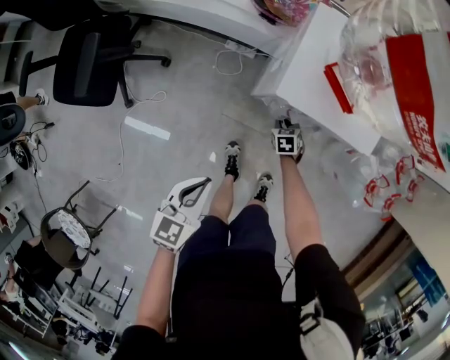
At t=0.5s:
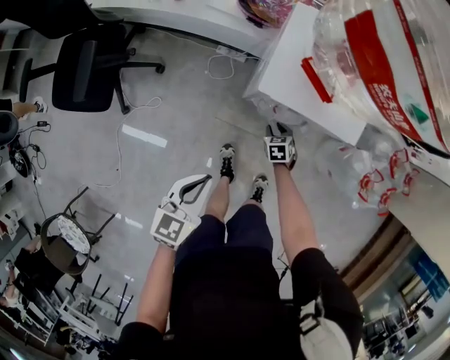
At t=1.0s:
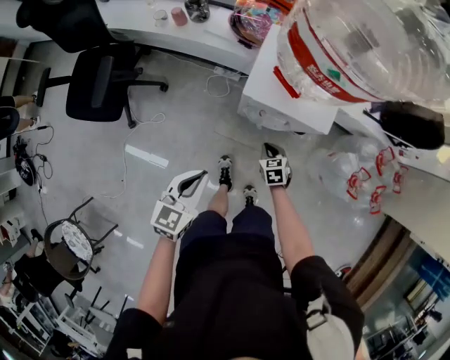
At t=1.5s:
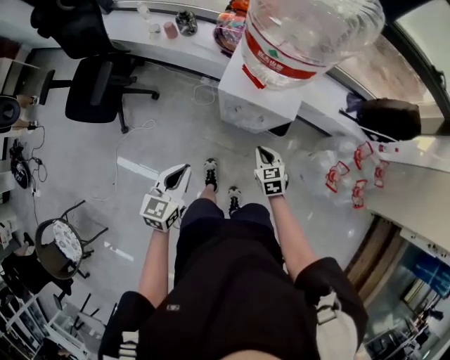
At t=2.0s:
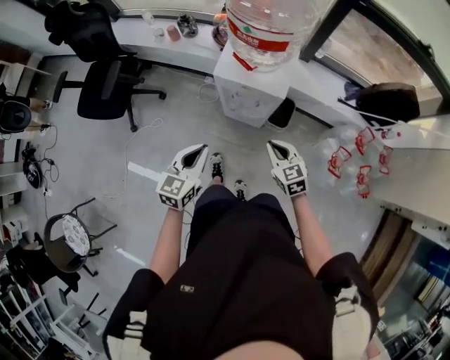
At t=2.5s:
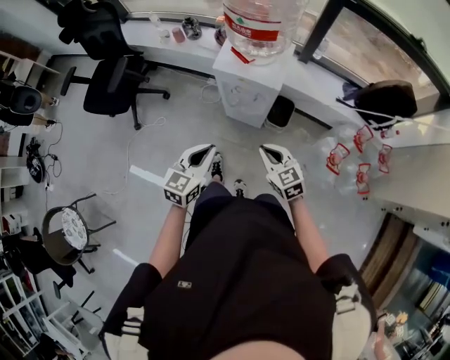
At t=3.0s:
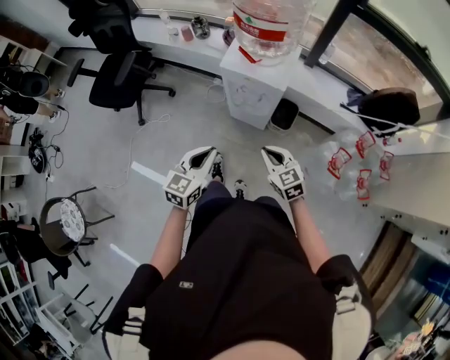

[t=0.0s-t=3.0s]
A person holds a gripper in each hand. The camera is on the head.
t=0.0s to t=1.5s: The left gripper is displaced upward by approximately 15 cm; the right gripper heads upward and backward, covering approximately 35 cm.
t=1.5s to t=3.0s: The left gripper shifts about 20 cm backward, to the right and upward. Meanwhile the right gripper goes roughly 20 cm backward and upward, and rotates approximately 20 degrees.

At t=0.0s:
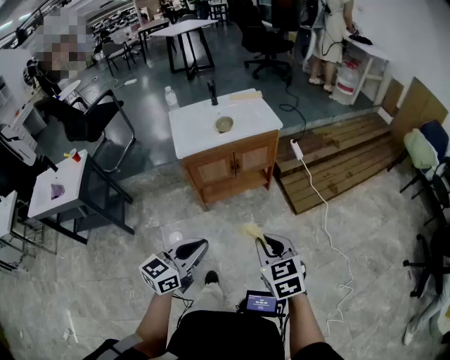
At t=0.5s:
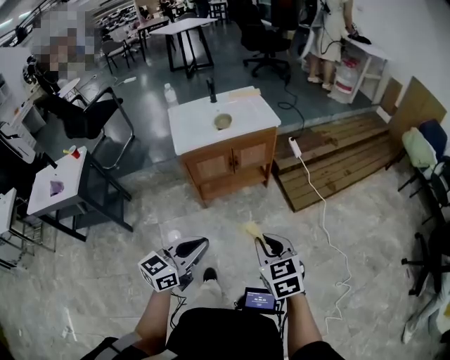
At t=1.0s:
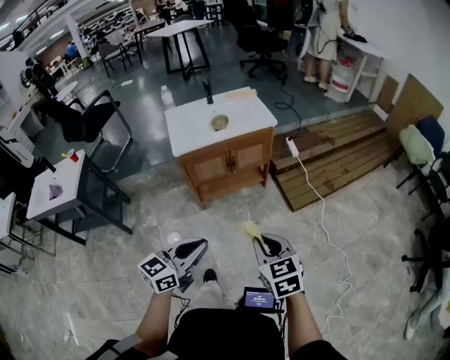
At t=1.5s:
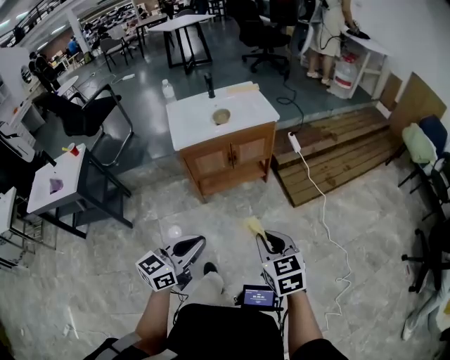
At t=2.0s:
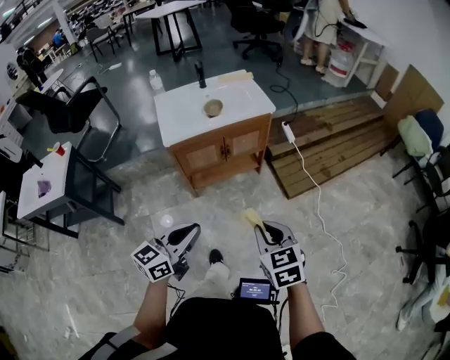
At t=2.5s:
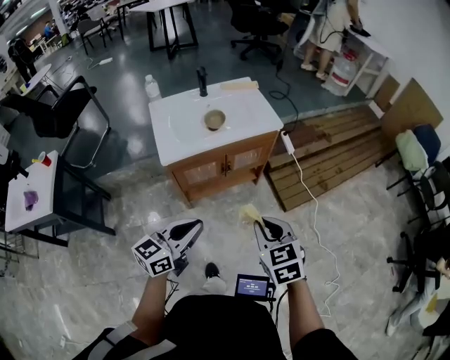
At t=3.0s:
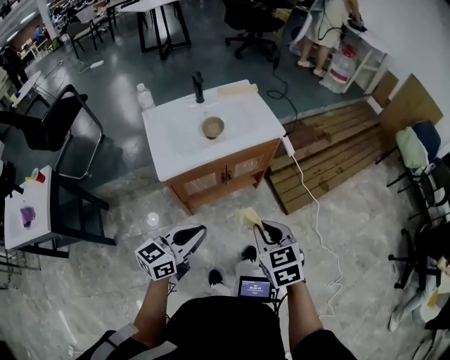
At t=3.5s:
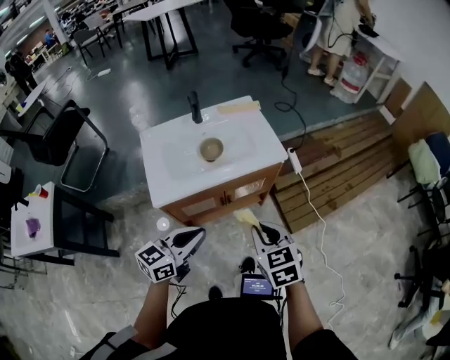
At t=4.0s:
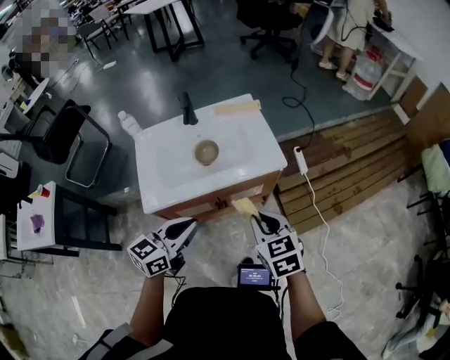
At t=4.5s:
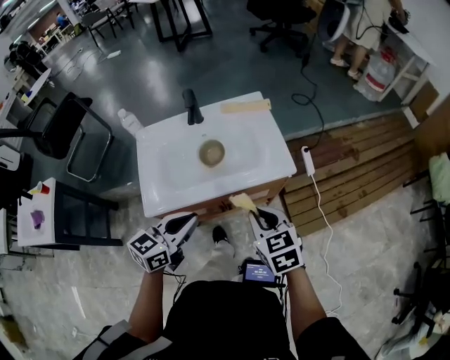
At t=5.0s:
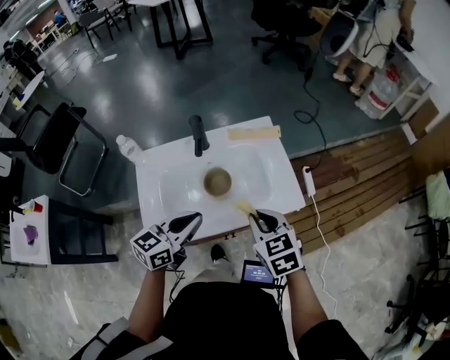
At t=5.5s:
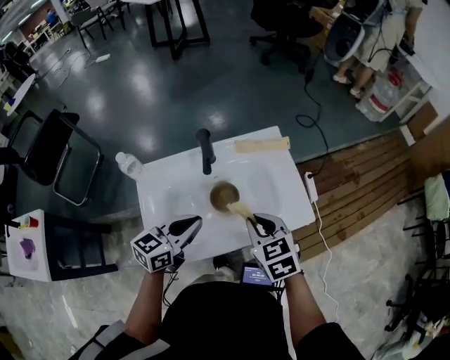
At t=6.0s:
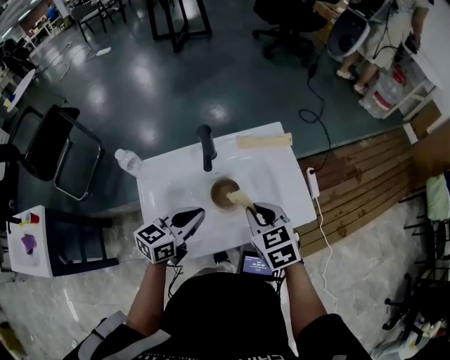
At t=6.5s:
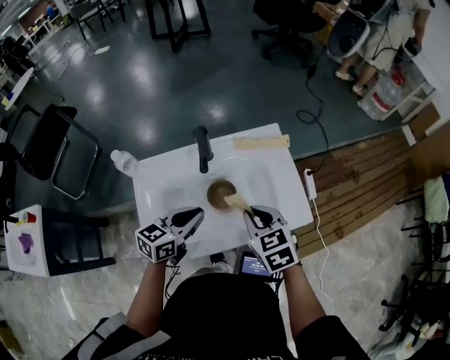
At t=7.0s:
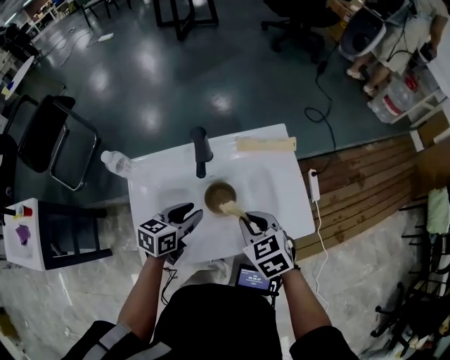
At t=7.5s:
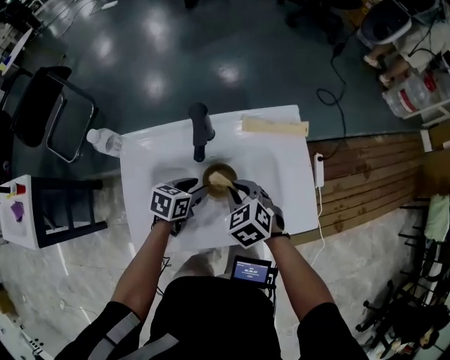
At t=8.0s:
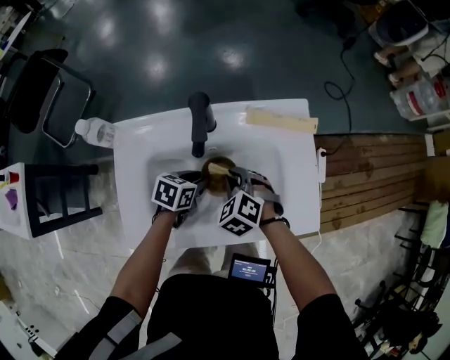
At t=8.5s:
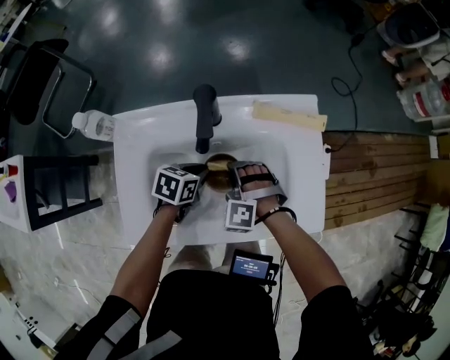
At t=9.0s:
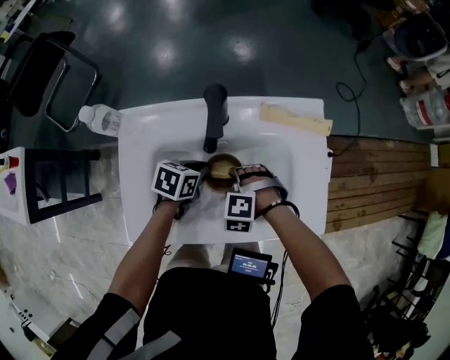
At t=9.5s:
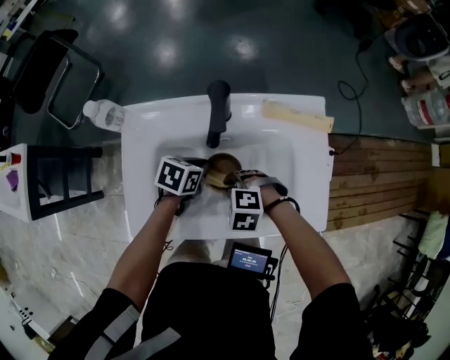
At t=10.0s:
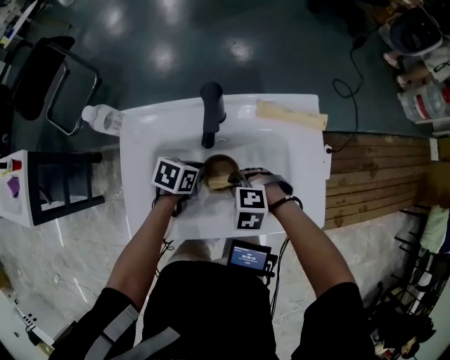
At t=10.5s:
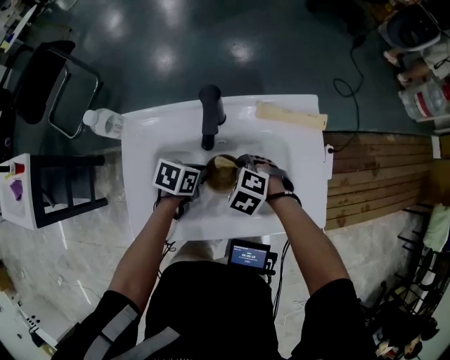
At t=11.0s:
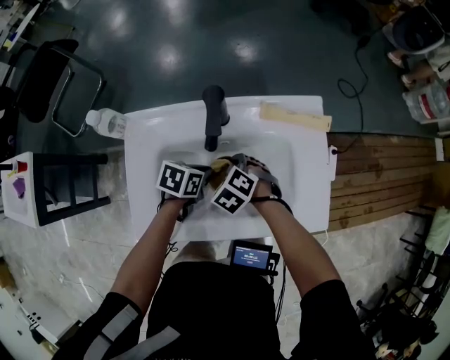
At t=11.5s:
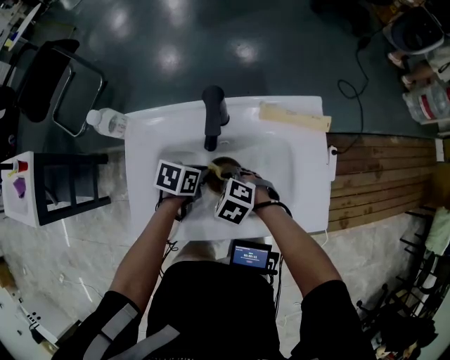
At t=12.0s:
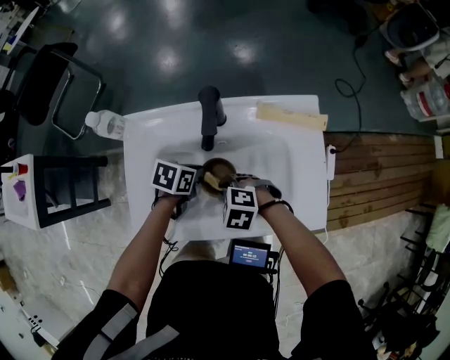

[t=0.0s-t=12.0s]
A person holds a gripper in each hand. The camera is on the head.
t=0.0s to t=2.0s: The left gripper changes place by some 5 cm.
t=2.0s to t=4.0s: The grippers both shift forward by some 40 cm.
t=4.0s to t=6.0s: Both grippers move forward and to the left, roughly 25 cm.
t=6.0s to t=8.0s: The left gripper shifts about 20 cm downward, angles its fingers downward, by some 30 degrees, and opens its fingers. The right gripper heads downward and forward, covering about 20 cm, and changes its angle by some 40 degrees.
t=8.0s to t=10.0s: The left gripper closes its fingers. Meanwhile the right gripper changes place by about 5 cm, and swivels approximately 40 degrees.

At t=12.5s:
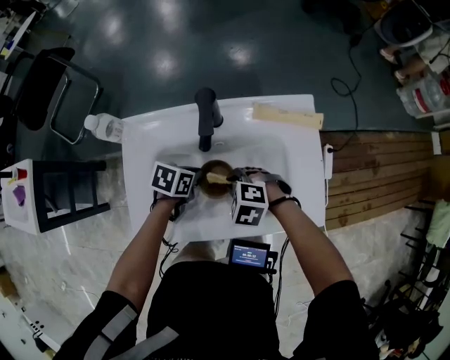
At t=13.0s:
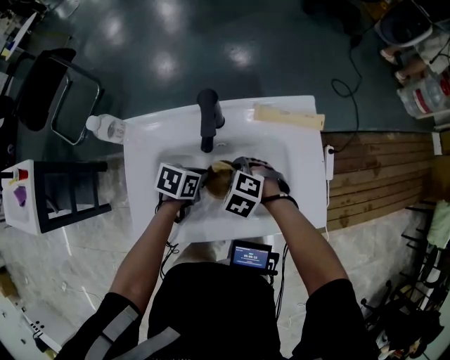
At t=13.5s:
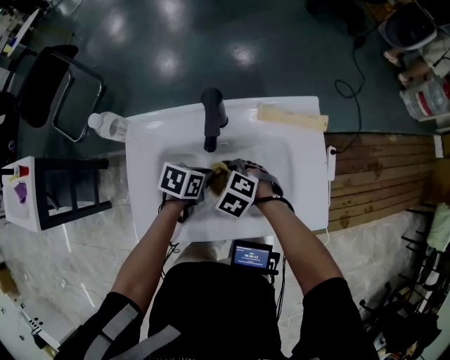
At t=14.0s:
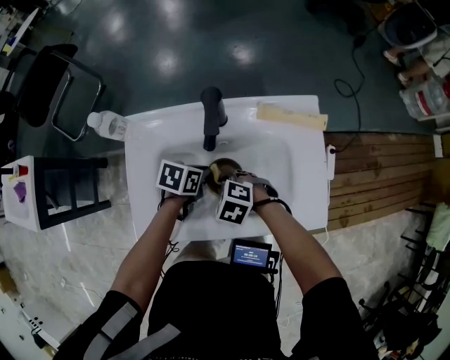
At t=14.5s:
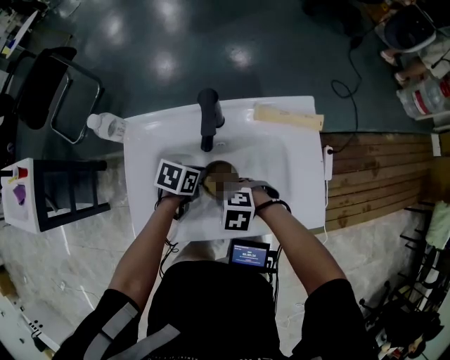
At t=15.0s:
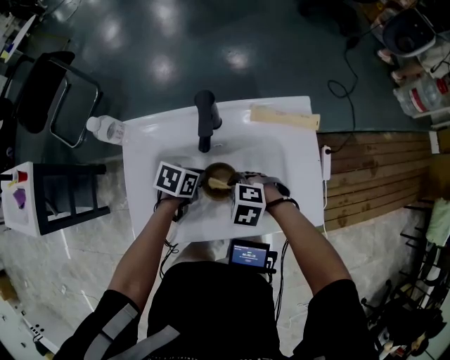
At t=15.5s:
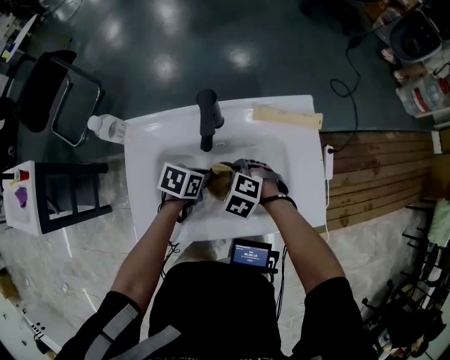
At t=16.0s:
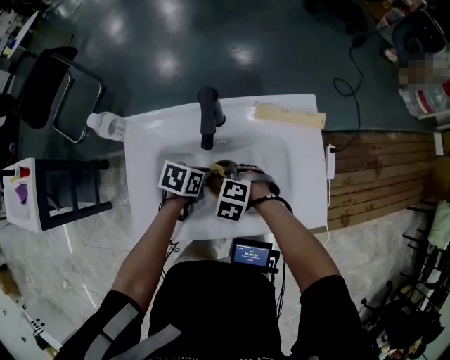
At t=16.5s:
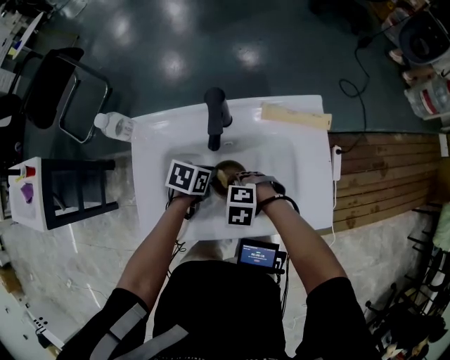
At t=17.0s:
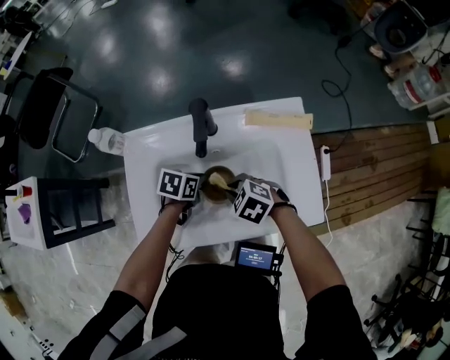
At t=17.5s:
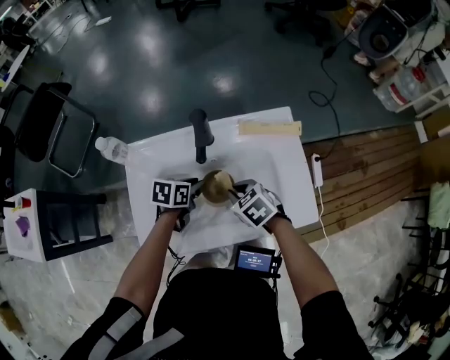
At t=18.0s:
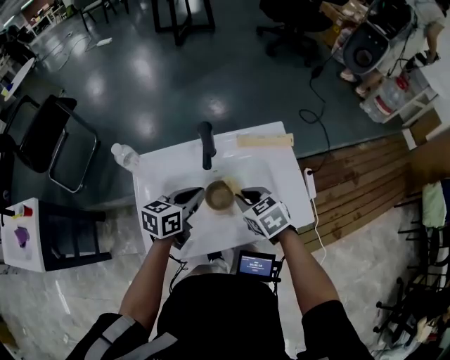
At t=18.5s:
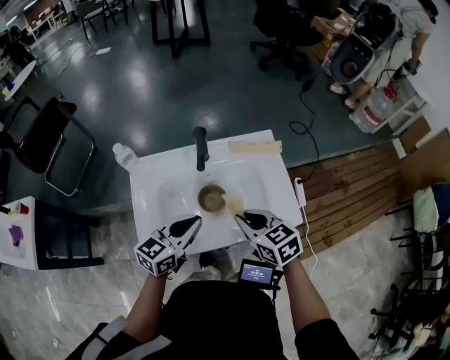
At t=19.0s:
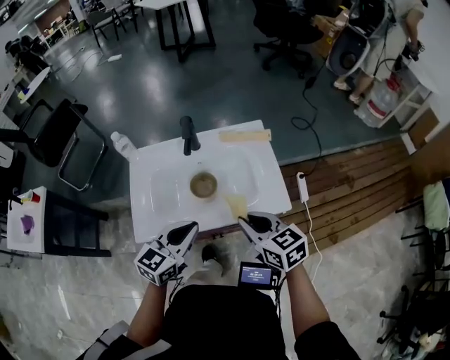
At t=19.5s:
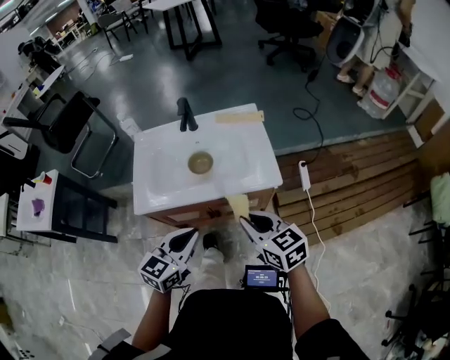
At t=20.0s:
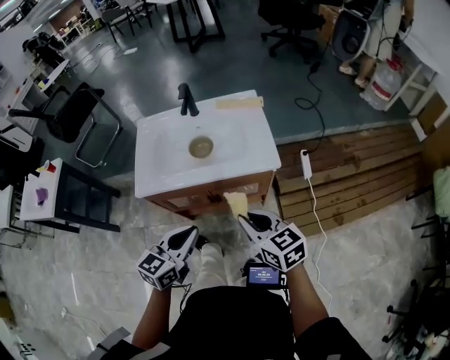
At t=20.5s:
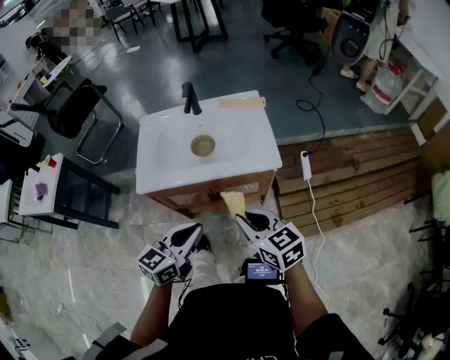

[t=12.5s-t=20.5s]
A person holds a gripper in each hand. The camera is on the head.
t=12.5s to t=14.5s: The right gripper moves approximately 5 cm.
t=16.5s to t=18.5s: The grippers both shift upward by roughly 20 cm. The right gripper points its fingers approximately 40 degrees further upward; the left gripper tilts its fingers approximately 50 degrees upward.
t=18.5s to t=20.5s: Both grippers travel together backward, approximately 25 cm.

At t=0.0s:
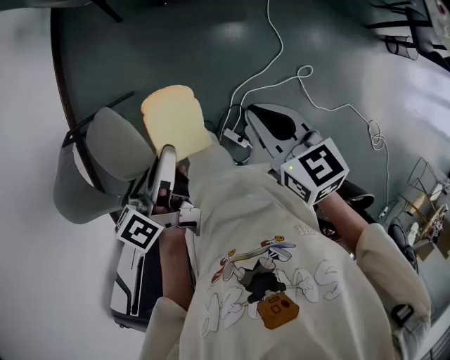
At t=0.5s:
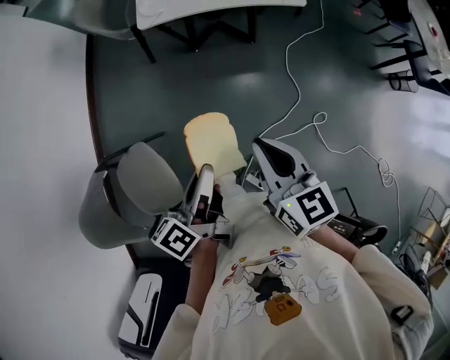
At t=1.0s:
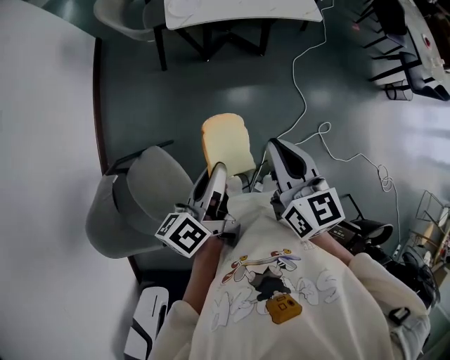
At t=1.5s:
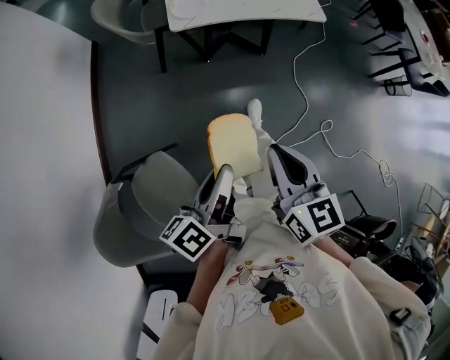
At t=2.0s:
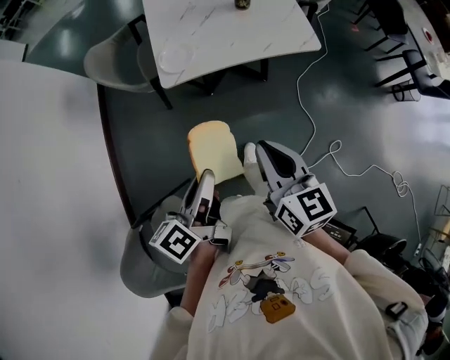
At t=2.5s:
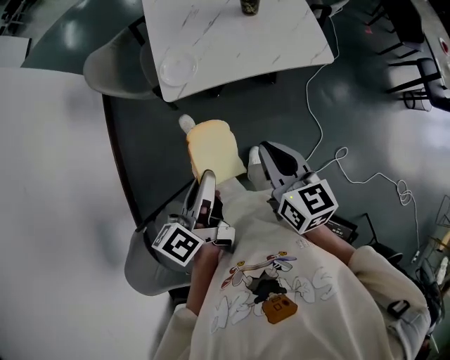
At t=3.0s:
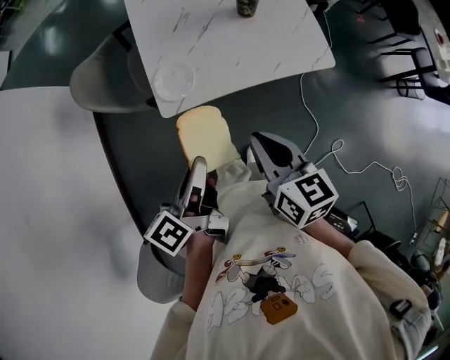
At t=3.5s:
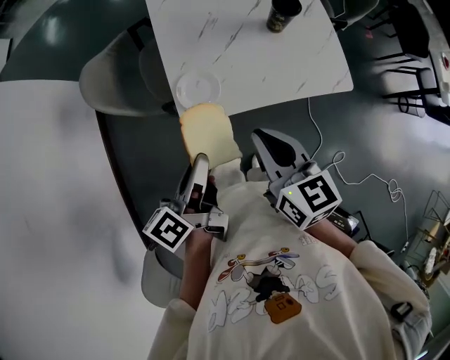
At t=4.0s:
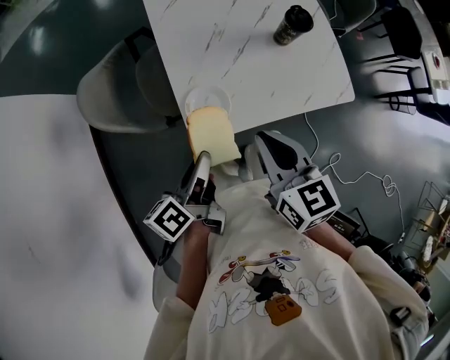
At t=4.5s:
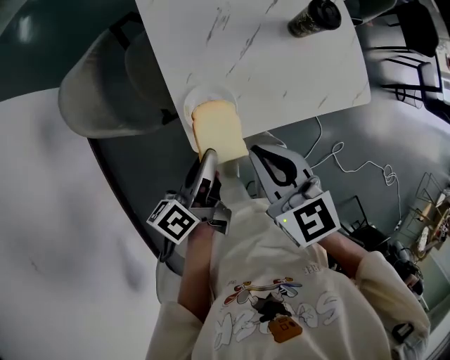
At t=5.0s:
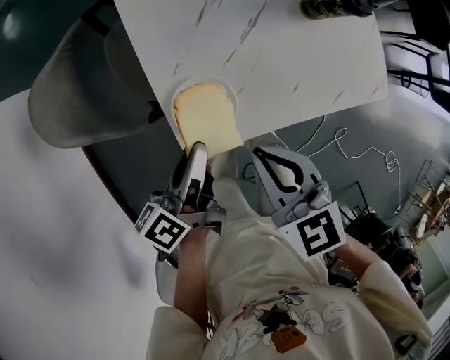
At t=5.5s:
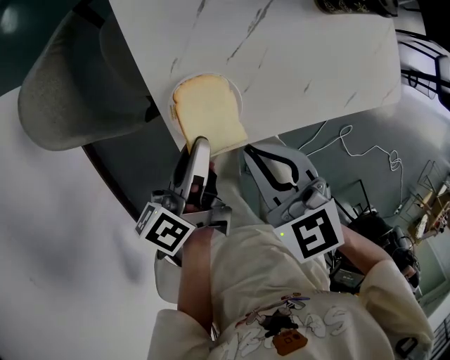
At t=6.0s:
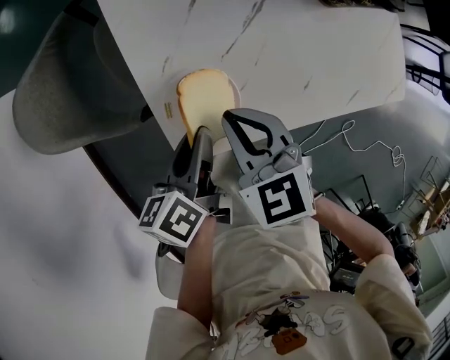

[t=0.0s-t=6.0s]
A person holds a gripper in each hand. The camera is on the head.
t=0.0s to t=2.0s: Both grippers move forward and to the left, roughly 25 cm. The right gripper swivels roughly 30 degrees.
t=2.0s to t=4.0s: Both grippers move forward, roughly 30 cm.
t=4.0s to t=6.0s: The left gripper moves downward and forward, roughly 20 cm. The right gripper heads downward, covering about 20 cm, and turns by about 30 degrees.
